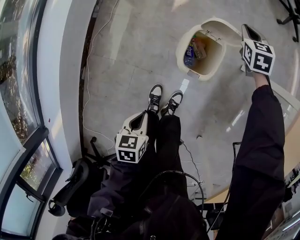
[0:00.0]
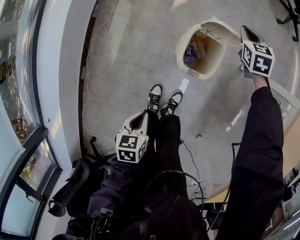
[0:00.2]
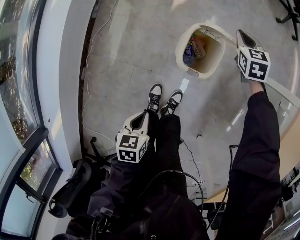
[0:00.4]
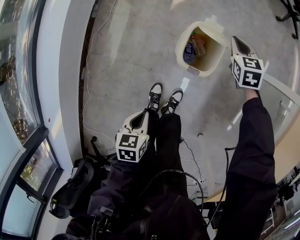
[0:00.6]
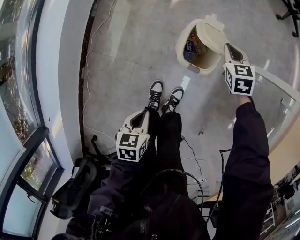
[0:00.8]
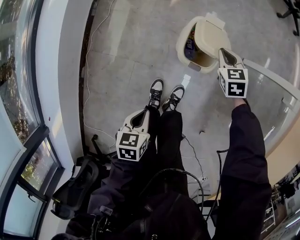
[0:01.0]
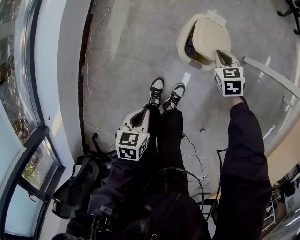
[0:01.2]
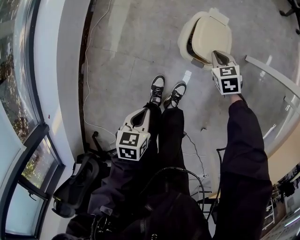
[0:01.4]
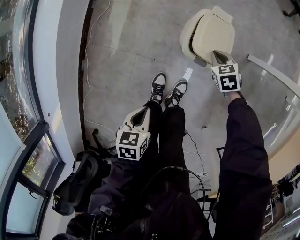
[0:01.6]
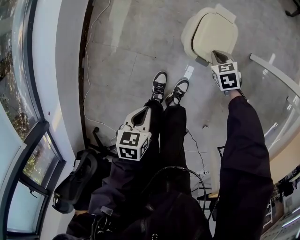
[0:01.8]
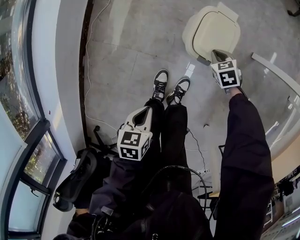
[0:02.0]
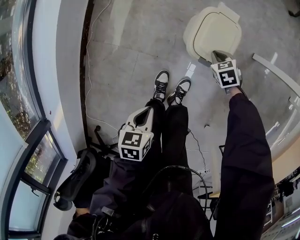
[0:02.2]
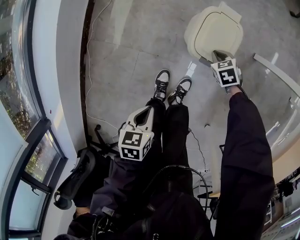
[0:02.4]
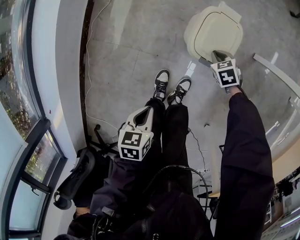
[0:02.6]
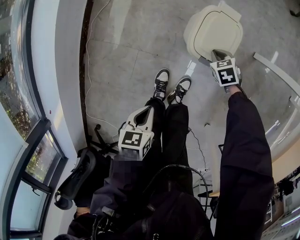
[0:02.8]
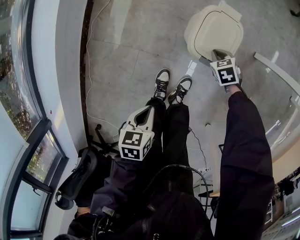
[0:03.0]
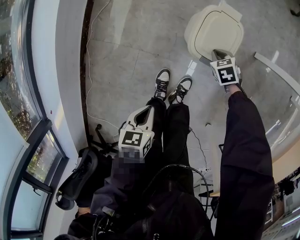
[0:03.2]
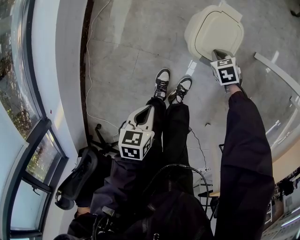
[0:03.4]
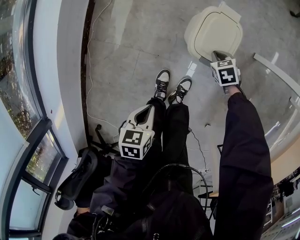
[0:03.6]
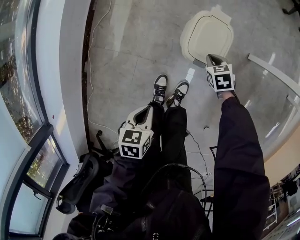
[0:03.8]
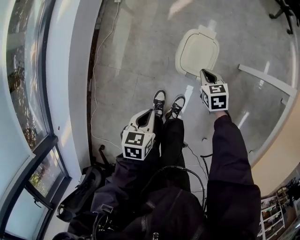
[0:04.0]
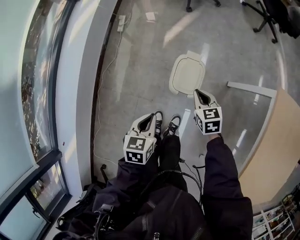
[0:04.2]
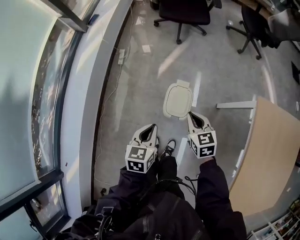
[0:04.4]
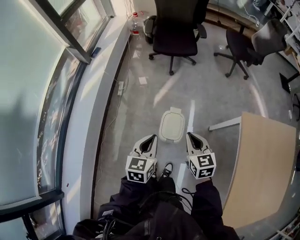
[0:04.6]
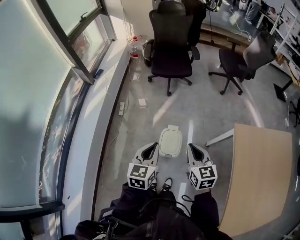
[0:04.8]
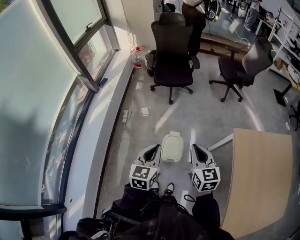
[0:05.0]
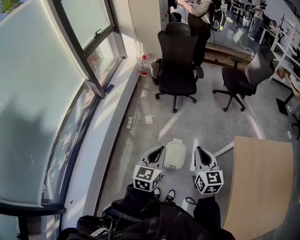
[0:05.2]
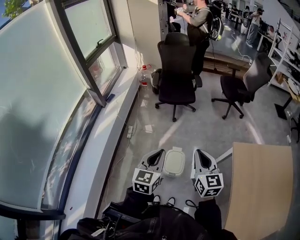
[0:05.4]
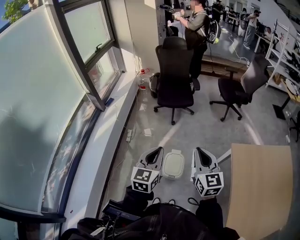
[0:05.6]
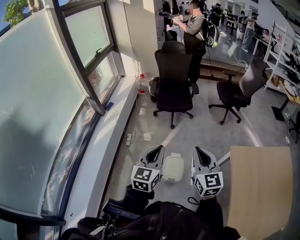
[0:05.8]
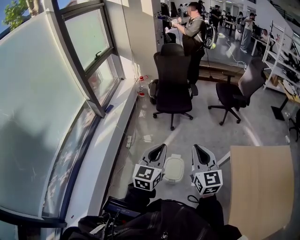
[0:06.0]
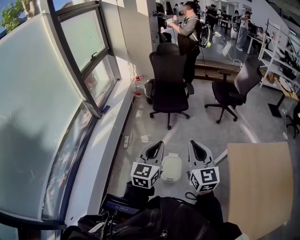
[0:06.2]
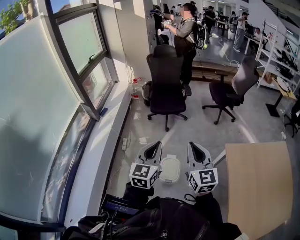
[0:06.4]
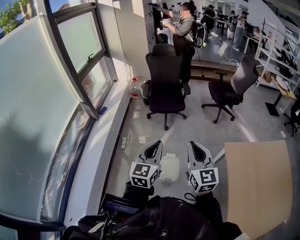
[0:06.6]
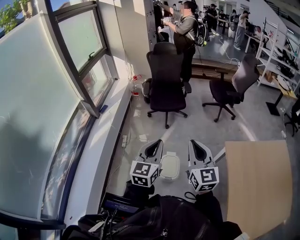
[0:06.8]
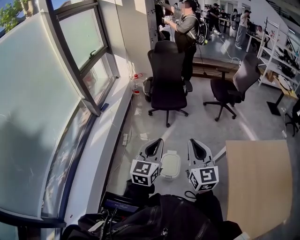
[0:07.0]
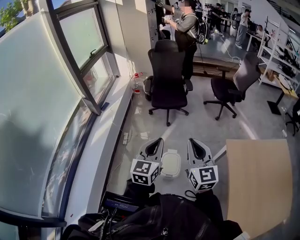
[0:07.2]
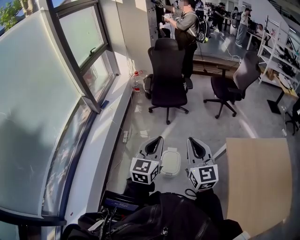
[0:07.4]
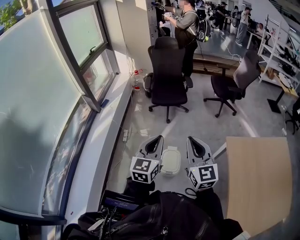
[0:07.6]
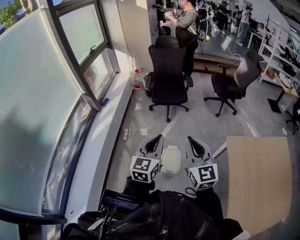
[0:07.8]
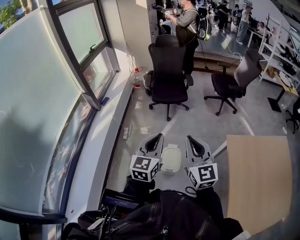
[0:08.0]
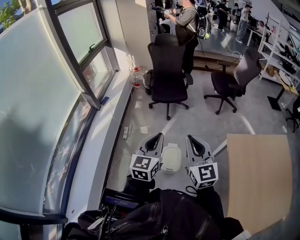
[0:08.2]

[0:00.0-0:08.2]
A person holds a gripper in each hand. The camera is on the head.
0:00.0 to 0:01.6: The right gripper goes approximately 25 cm backward and downward, and changes its angle by about 20 degrees.
0:01.6 to 0:03.2: The right gripper goes about 5 cm downward.
0:03.2 to 0:05.0: The two grippers go roughly 60 cm upward. The left gripper tips its fingers upward by approximately 50 degrees. Meanwhile the right gripper points its fingers approximately 60 degrees further upward.
0:05.0 to 0:06.6: The two grippers go approximately 15 cm upward.
0:06.6 to 0:08.2: There are only small adjustments of the grippers.

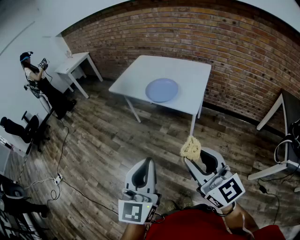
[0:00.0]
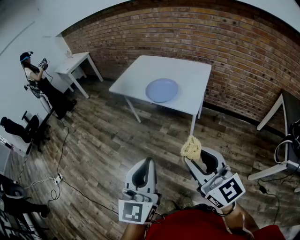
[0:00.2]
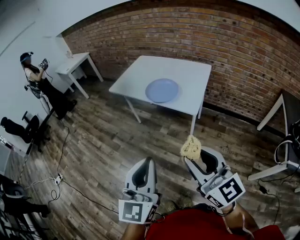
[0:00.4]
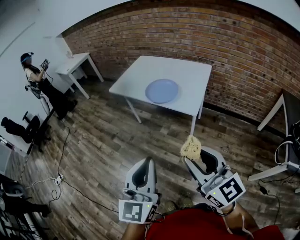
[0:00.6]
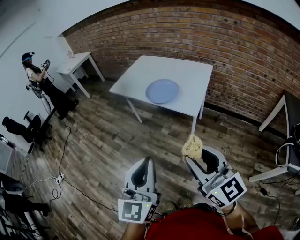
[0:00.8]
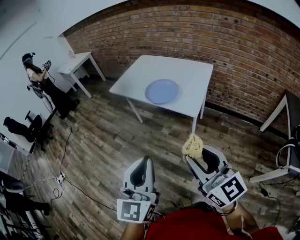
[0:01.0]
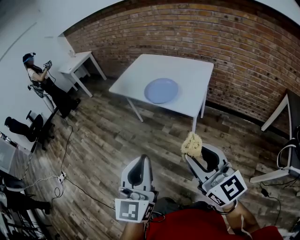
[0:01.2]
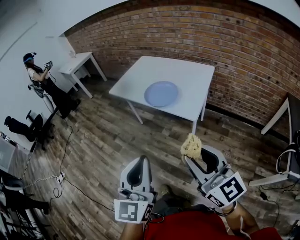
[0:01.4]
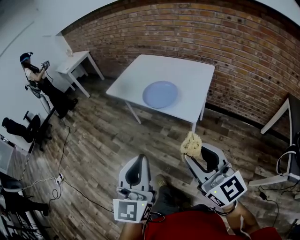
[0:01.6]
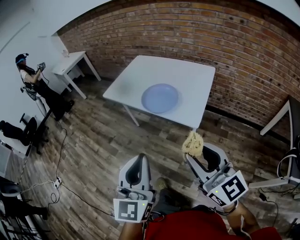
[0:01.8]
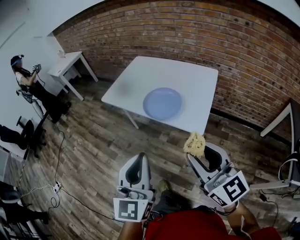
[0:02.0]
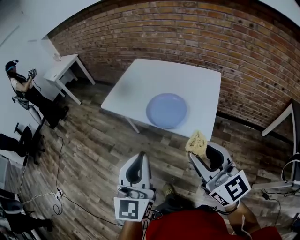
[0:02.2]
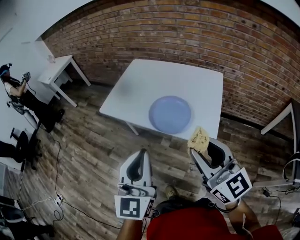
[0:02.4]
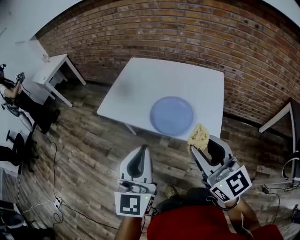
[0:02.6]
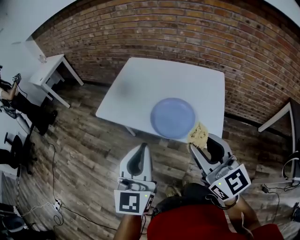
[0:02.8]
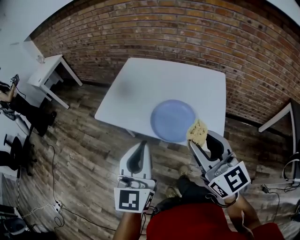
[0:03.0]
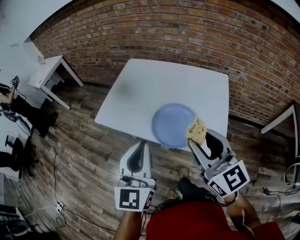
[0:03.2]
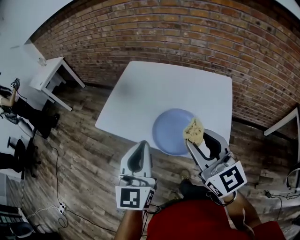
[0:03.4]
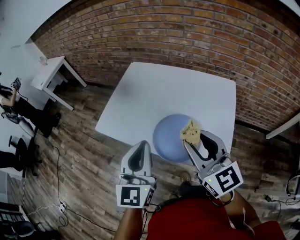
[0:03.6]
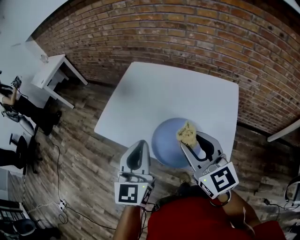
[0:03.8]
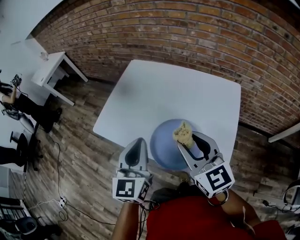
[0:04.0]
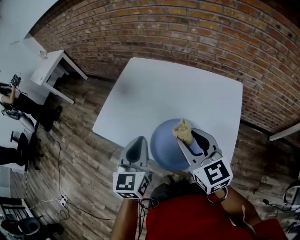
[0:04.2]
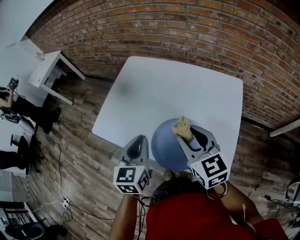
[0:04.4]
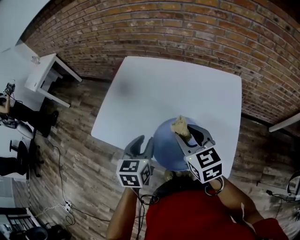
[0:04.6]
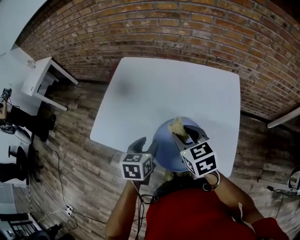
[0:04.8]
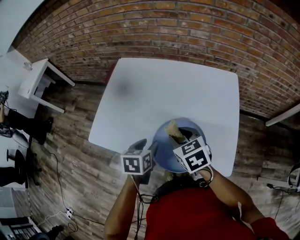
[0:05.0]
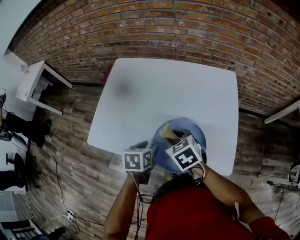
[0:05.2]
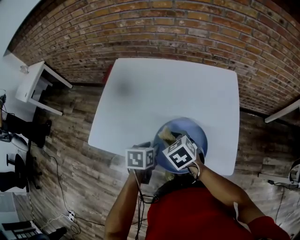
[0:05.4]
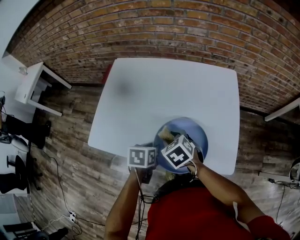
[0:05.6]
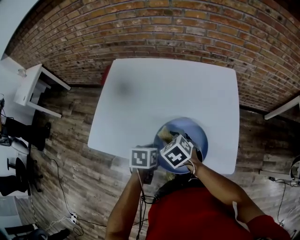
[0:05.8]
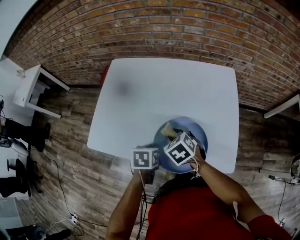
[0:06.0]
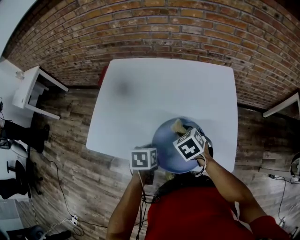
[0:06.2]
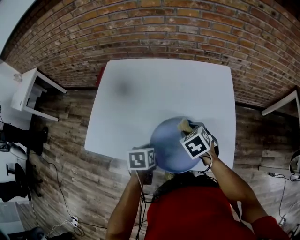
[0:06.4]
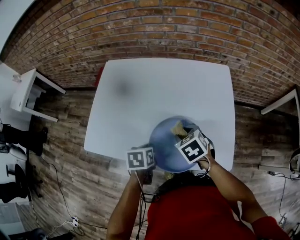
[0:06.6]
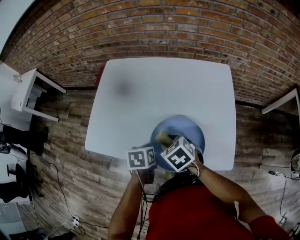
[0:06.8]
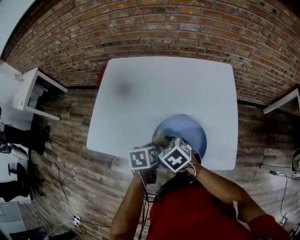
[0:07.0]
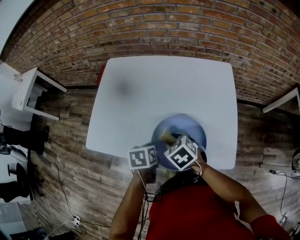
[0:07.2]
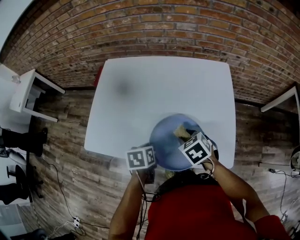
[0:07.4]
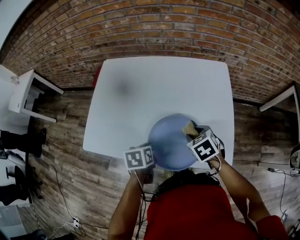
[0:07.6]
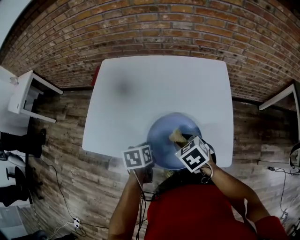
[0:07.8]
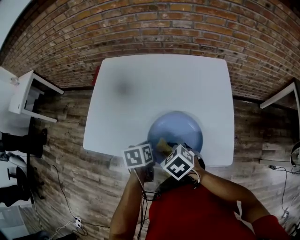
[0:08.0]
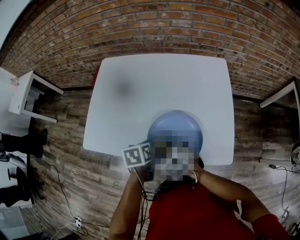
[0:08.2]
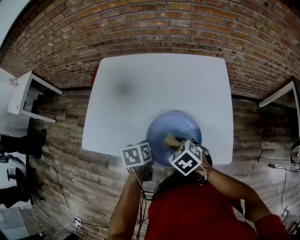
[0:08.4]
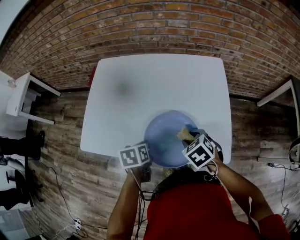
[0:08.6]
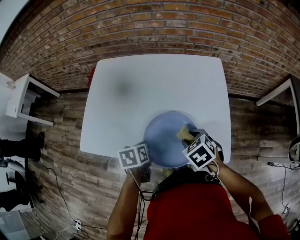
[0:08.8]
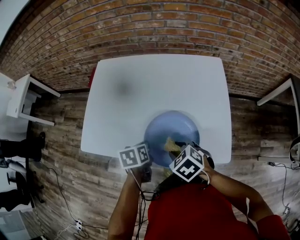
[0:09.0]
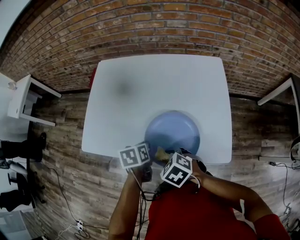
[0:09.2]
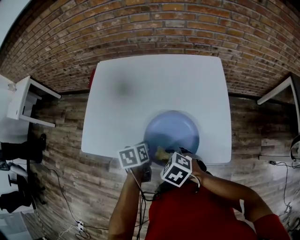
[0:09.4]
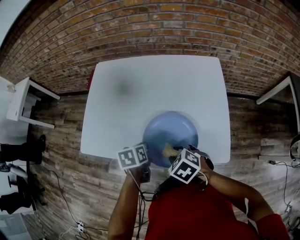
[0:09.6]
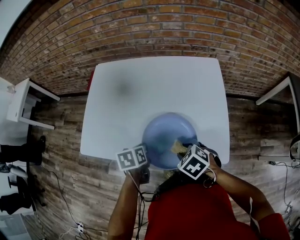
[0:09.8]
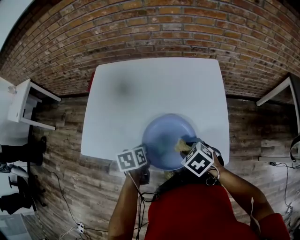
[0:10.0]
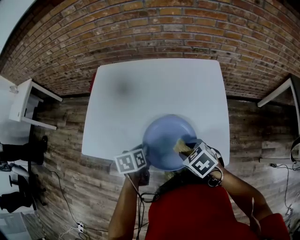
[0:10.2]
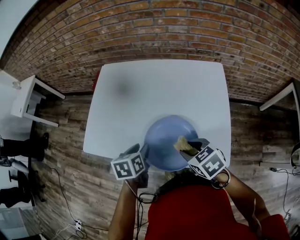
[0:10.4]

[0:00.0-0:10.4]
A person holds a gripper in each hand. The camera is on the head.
0:00.0 to 0:01.4: The left gripper ends up about 5 cm from where it was, while the right gripper moves to the right, roughly 5 cm.
0:01.4 to 0:03.0: Both grippers move forward, roughly 40 cm.
0:03.0 to 0:04.4: Both grippers travel together forward and downward, approximately 25 cm. The left gripper rotates approximately 30 degrees.
0:04.4 to 0:06.0: Both grippers move downward, approximately 20 cm. The right gripper points its fingers approximately 40 degrees further downward. The left gripper tips its fingers downward by approximately 40 degrees, and opens, then closes again.
0:06.0 to 0:07.4: The right gripper swings left and right, some 10 cm each way, with 2 reversals.
0:07.4 to 0:09.0: The right gripper goes left and right, about 15 cm each way, reversing 3 times.
0:09.0 to 0:10.4: The right gripper shifts approximately 5 cm to the right. Meanwhile the left gripper opens its fingers.

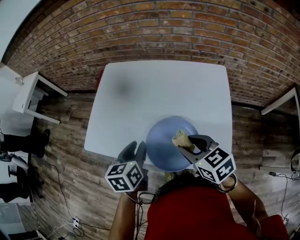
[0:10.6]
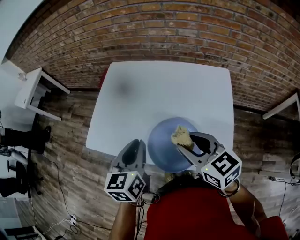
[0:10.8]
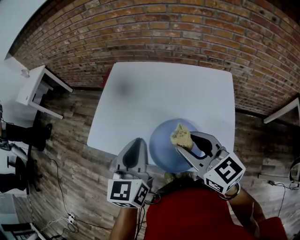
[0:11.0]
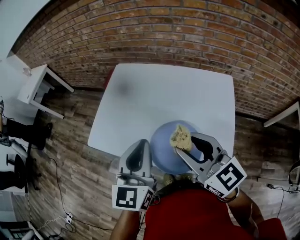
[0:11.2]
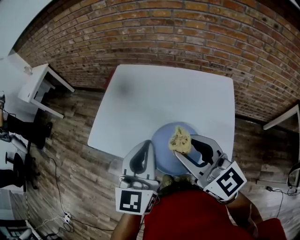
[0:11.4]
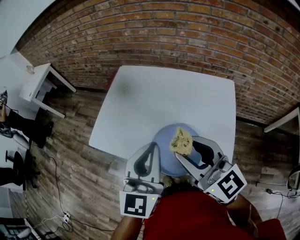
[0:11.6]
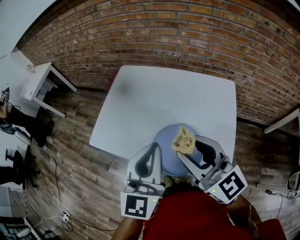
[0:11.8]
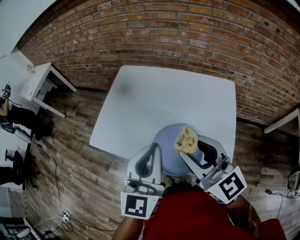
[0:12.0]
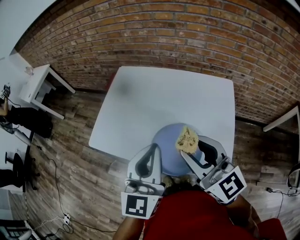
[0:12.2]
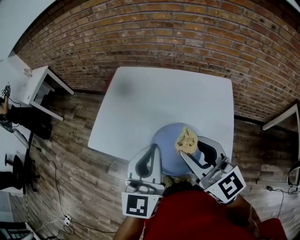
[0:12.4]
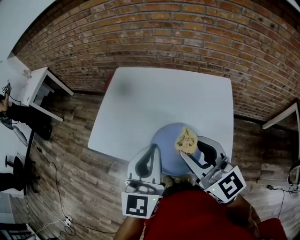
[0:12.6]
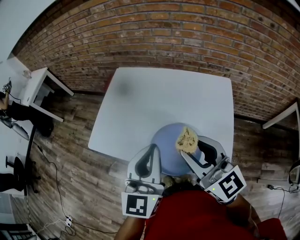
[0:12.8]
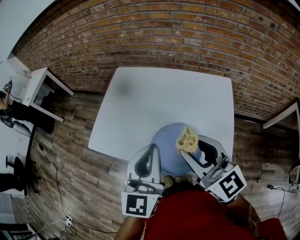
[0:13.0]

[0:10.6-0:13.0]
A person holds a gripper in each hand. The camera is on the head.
0:10.6 to 0:11.8: The two grippers go roughly 15 cm upward. The right gripper tilts its fingers some 40 degrees upward, while the left gripper angles its fingers upward, by roughly 40 degrees, and closes its fingers.
0:11.8 to 0:13.0: The grippers stay close to where they were, moving slightly.

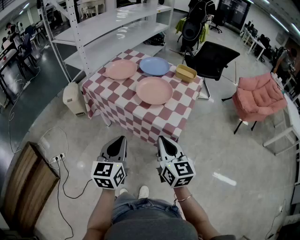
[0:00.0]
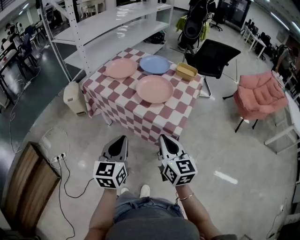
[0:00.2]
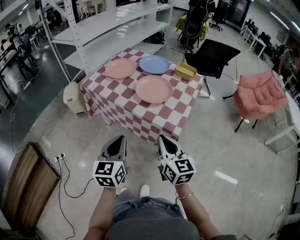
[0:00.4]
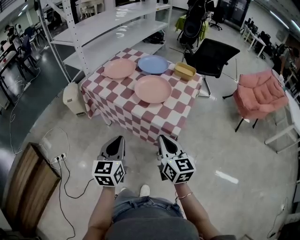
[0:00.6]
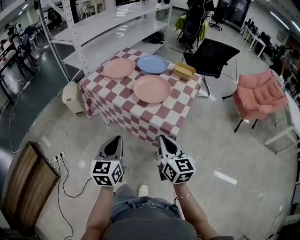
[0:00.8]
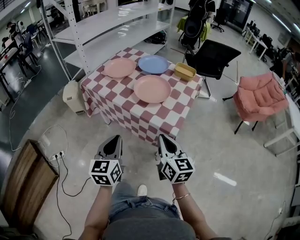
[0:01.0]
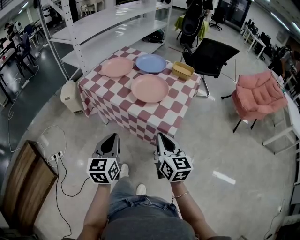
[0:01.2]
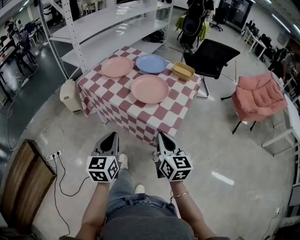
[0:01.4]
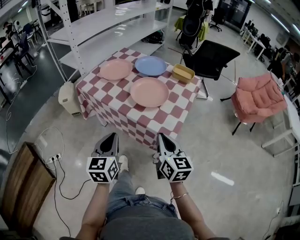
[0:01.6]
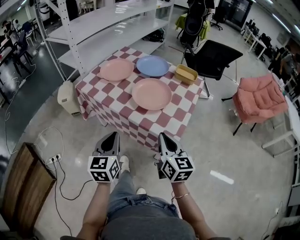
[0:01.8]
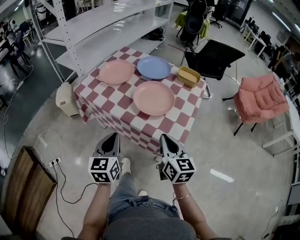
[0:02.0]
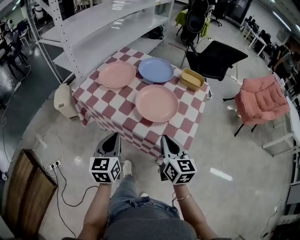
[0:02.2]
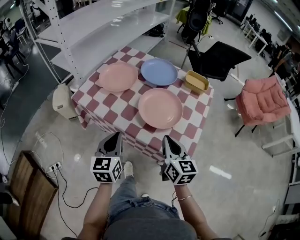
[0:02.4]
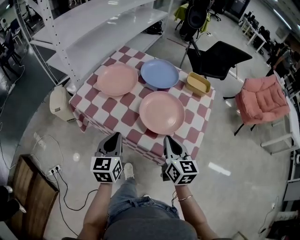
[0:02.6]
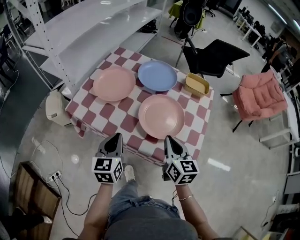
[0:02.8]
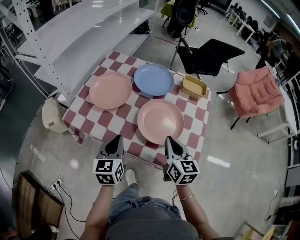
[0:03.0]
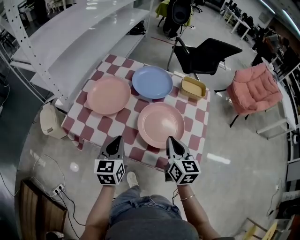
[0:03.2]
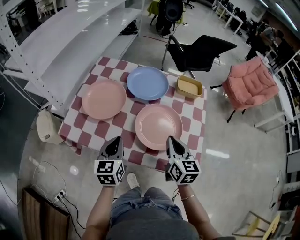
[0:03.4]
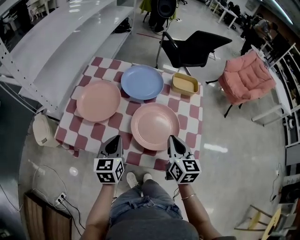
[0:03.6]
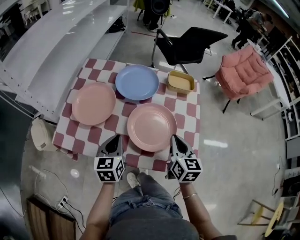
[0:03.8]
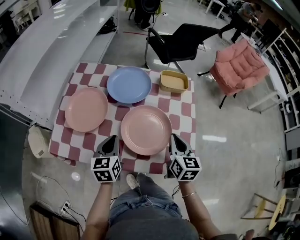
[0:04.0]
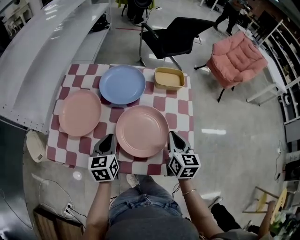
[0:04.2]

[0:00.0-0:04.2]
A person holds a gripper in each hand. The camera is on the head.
0:00.0 to 0:01.4: The right gripper moves roughly 5 cm.
0:01.4 to 0:02.8: Both grippers travel together forward, some 25 cm.
0:02.8 to 0:04.2: The left gripper travels forward by about 15 cm; the right gripper travels forward and to the right by roughly 15 cm, and rotates about 20 degrees.
